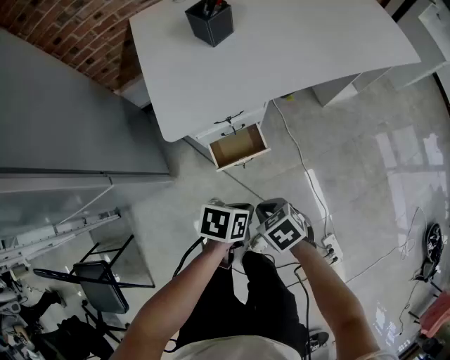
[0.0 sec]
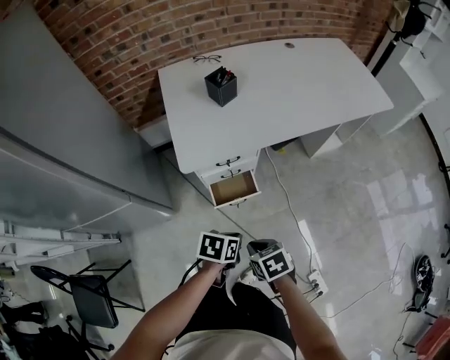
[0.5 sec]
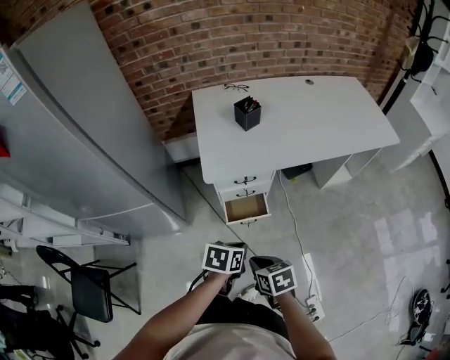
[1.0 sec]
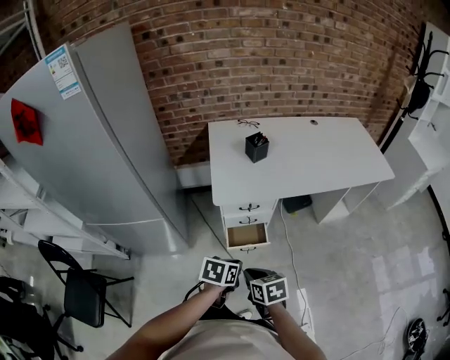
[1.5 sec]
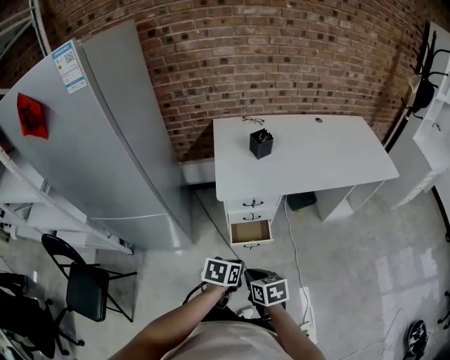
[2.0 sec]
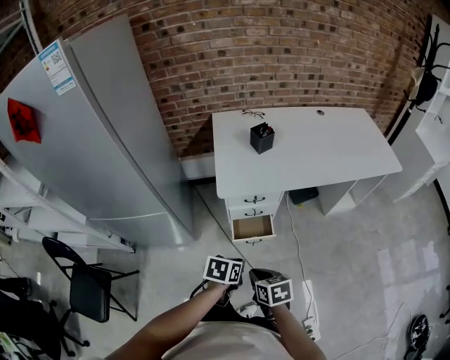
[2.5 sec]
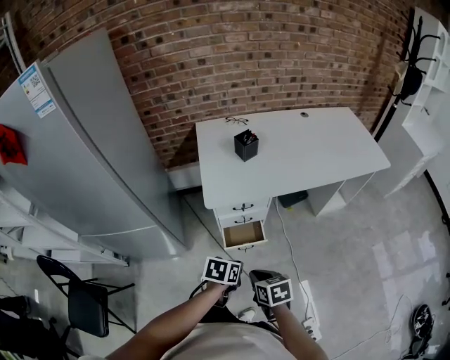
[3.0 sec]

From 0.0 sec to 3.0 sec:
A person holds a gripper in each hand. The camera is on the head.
From 0.0 sec to 1.5 sec: Both grippers travel together upward, some 20 cm. The left gripper turns by roughly 20 degrees. Meanwhile the right gripper rotates some 20 degrees.
From 1.5 sec to 3.0 sec: The grippers stay close to where they were, moving slightly.

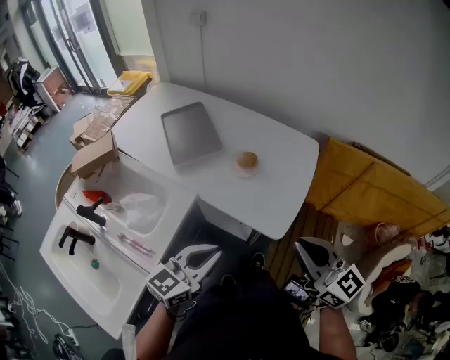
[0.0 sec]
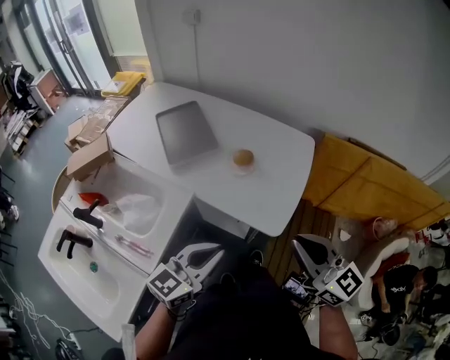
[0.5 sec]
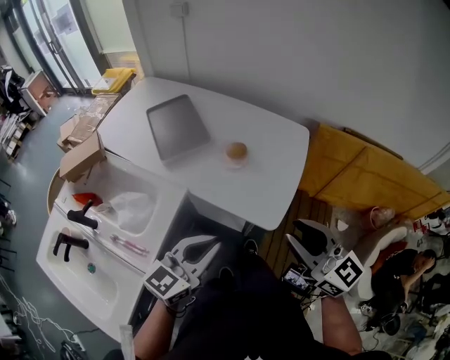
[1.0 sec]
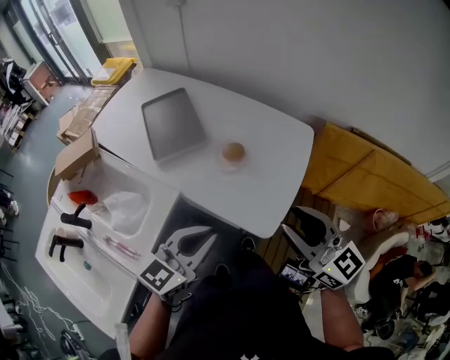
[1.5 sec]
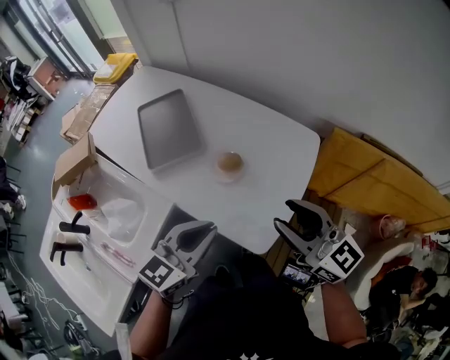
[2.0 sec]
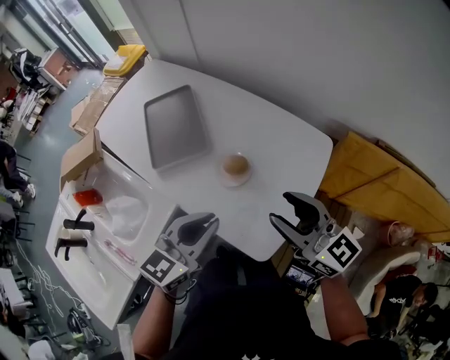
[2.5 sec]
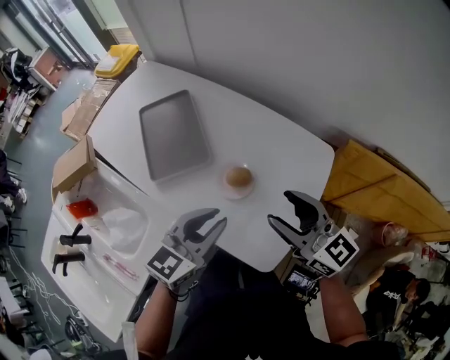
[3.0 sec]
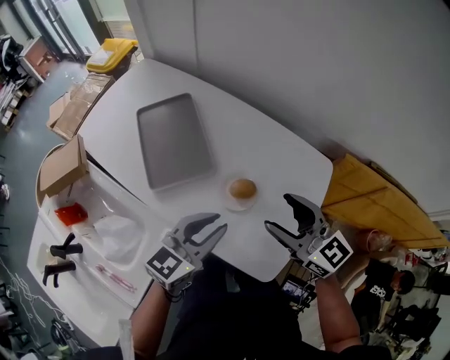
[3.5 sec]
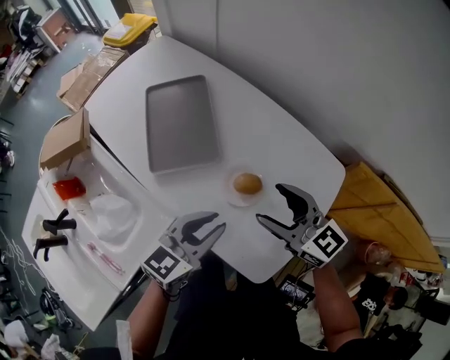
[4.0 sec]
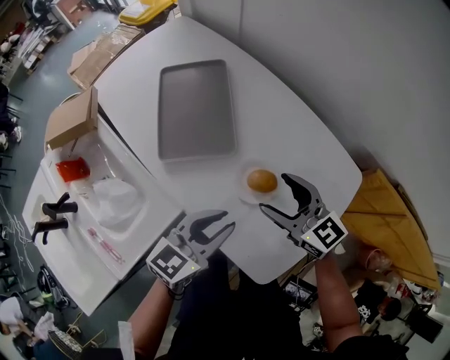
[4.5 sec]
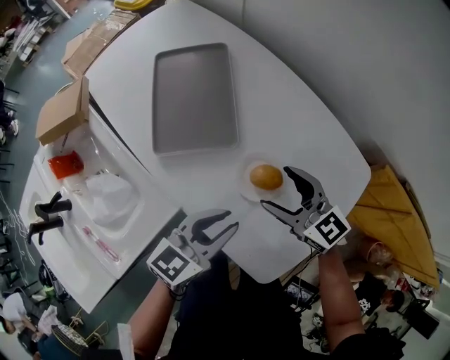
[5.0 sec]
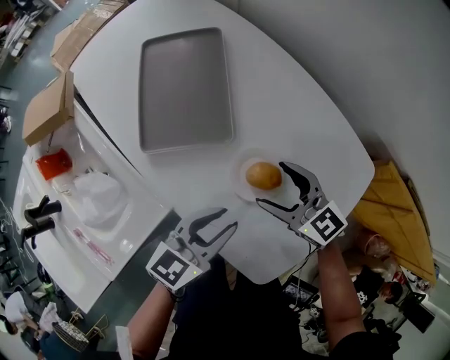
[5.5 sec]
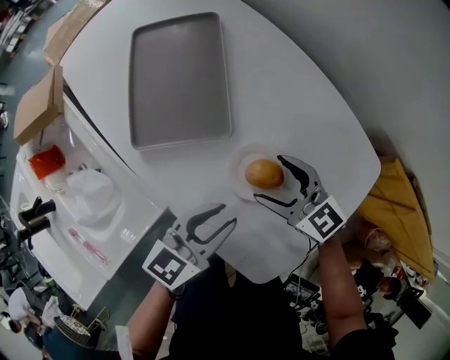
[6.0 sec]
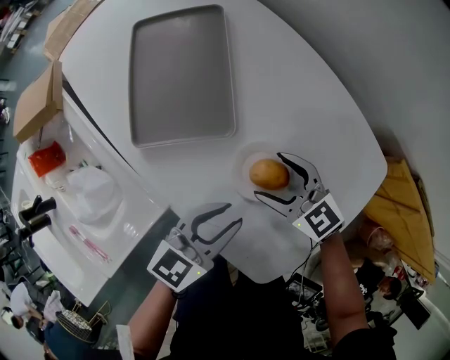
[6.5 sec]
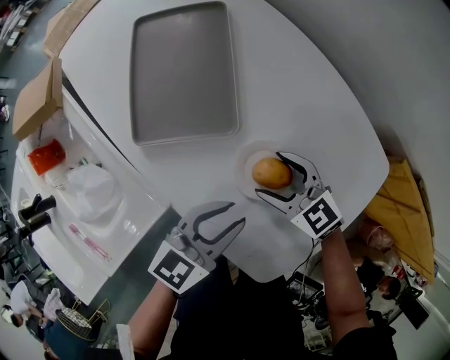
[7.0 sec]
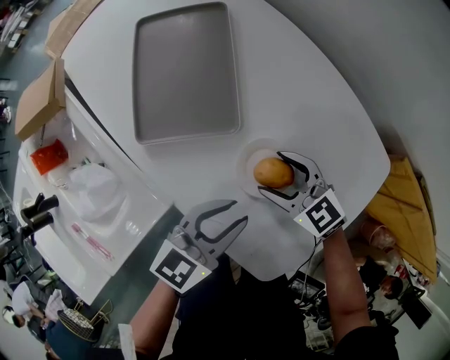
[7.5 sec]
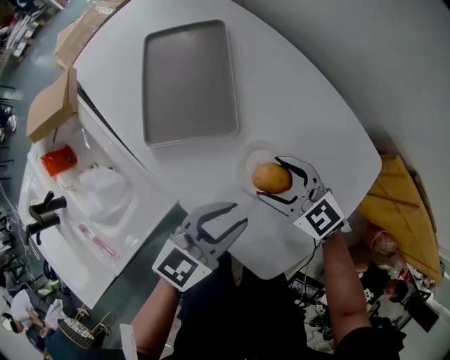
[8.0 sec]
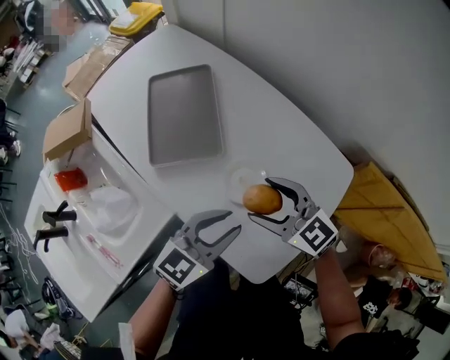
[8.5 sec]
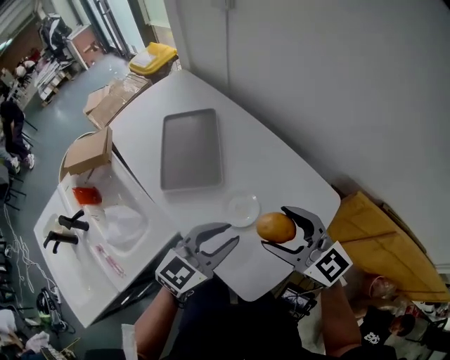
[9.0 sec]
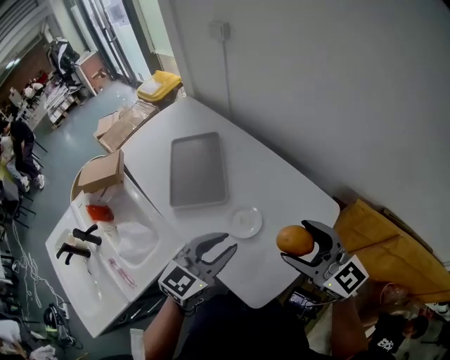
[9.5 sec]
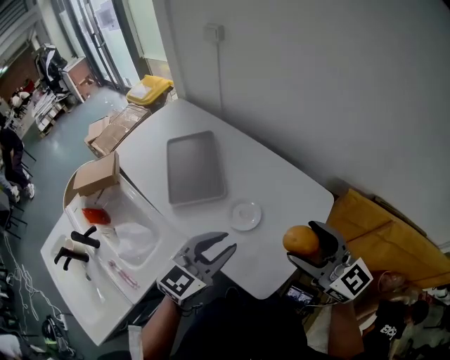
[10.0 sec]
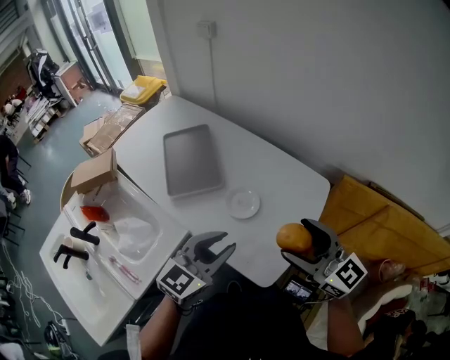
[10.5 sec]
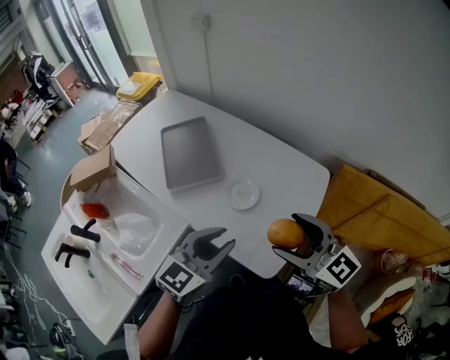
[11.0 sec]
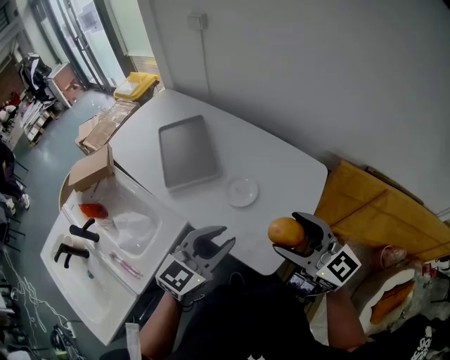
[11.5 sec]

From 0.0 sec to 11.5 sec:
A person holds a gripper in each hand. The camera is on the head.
From 0.0 sec to 2.0 sec: The right gripper moves forward, about 20 cm, and opens its fingers. The left gripper goes some 20 cm forward and to the right.
From 2.0 sec to 4.0 sec: The left gripper is displaced forward and downward by approximately 15 cm, while the right gripper goes about 25 cm forward, downward and to the left, and opens its fingers.
From 4.0 sec to 6.0 sec: The two grippers go roughly 15 cm downward.
From 6.0 sec to 7.5 sec: There are only small adjustments of the grippers.
From 7.5 sec to 9.5 sec: The left gripper is displaced upward by about 20 cm. Meanwhile the right gripper is displaced upward and backward by some 40 cm, and swivels some 30 degrees.
From 9.5 sec to 11.5 sec: Both grippers move backward, about 10 cm.

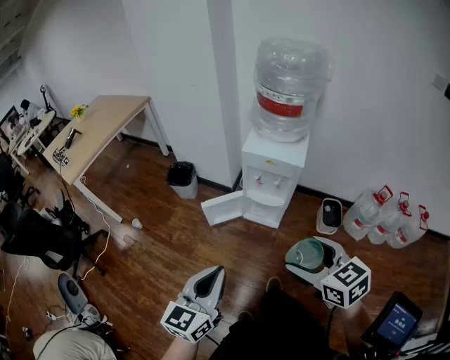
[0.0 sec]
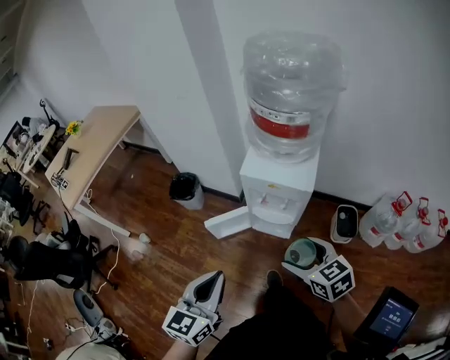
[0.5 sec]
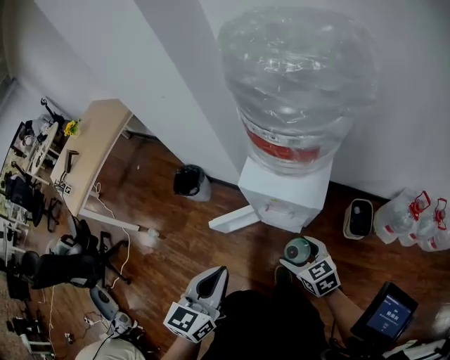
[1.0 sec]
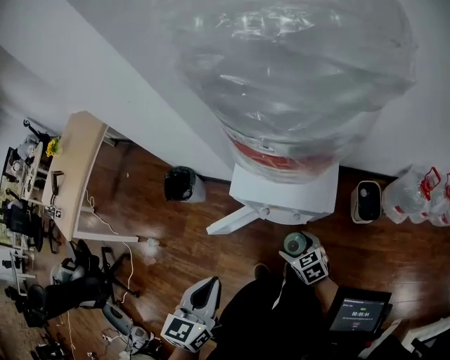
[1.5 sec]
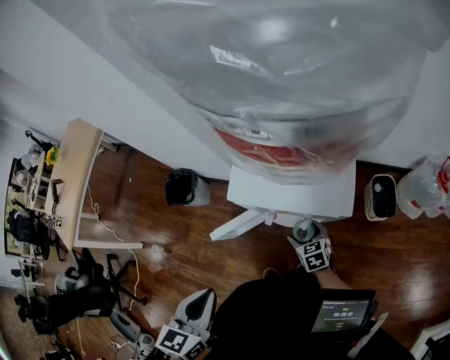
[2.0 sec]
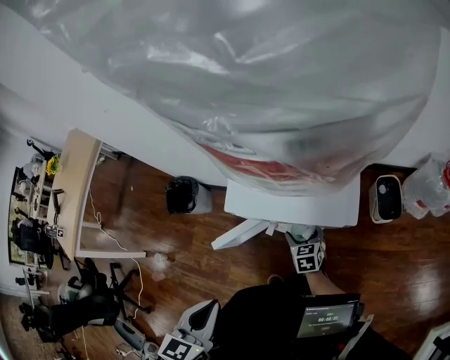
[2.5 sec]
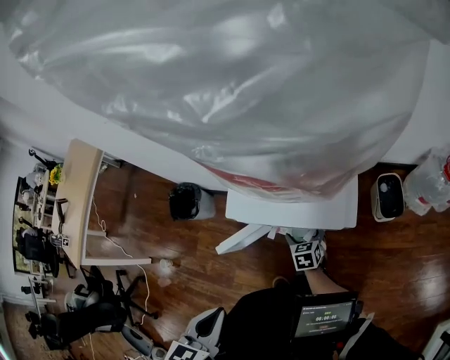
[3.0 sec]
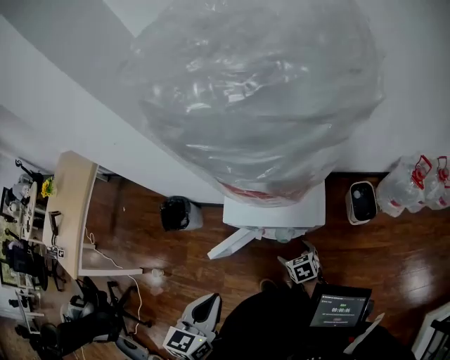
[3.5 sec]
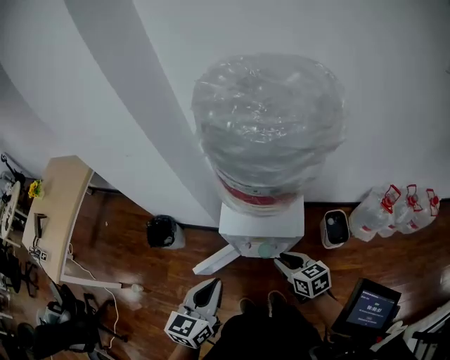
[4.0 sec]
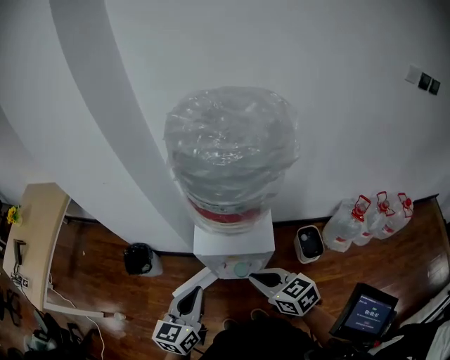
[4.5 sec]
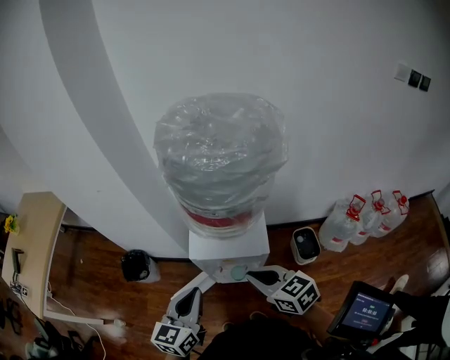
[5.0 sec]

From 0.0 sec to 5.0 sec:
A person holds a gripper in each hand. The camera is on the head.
From 0.0 sec to 2.5 sec: The left gripper goes approximately 40 cm forward and downward, and changes its angle by roughly 30 degrees, while the right gripper goes some 70 cm downward and forward, and rotates about 30 degrees.
From 2.5 sec to 5.0 sec: The right gripper heads upward, covering about 50 cm, swivels approximately 20 degrees, and closes. The left gripper goes about 15 cm upward, and rotates approximately 20 degrees.

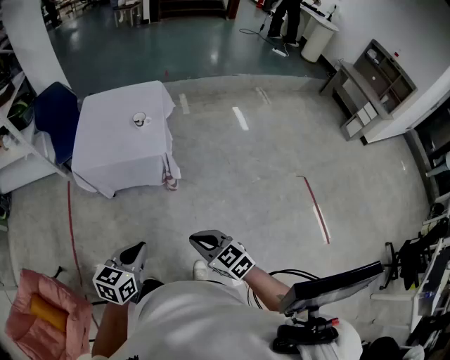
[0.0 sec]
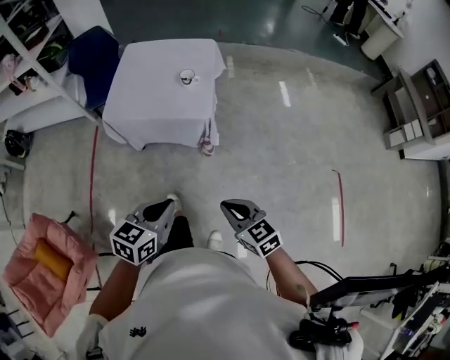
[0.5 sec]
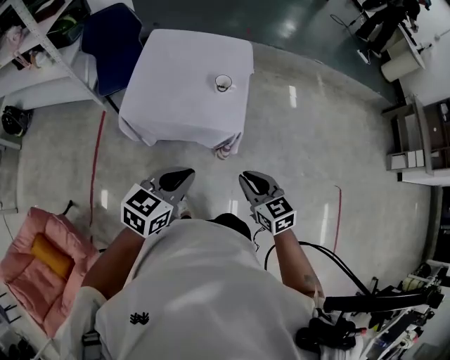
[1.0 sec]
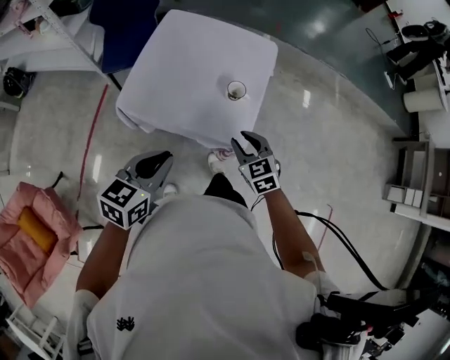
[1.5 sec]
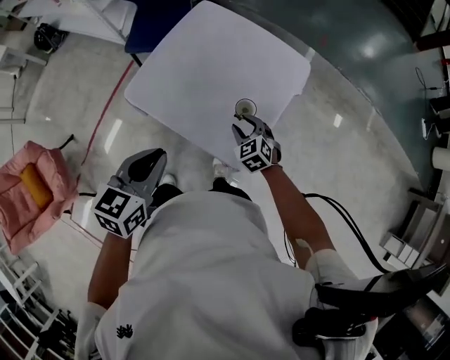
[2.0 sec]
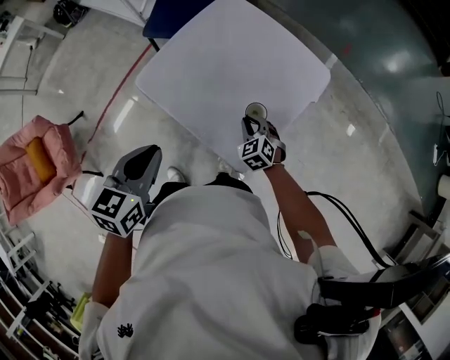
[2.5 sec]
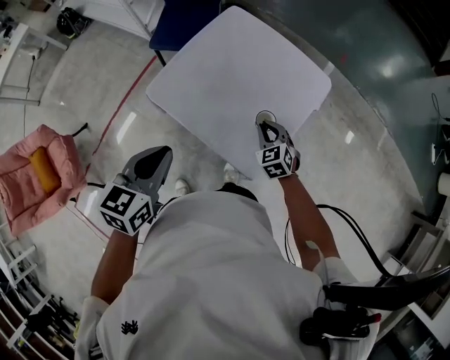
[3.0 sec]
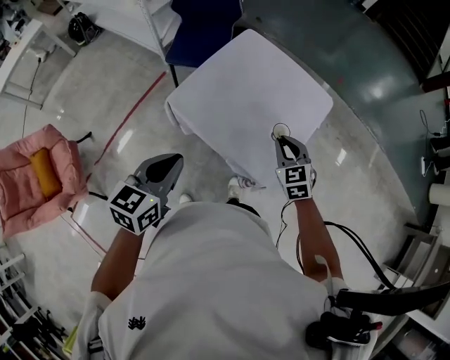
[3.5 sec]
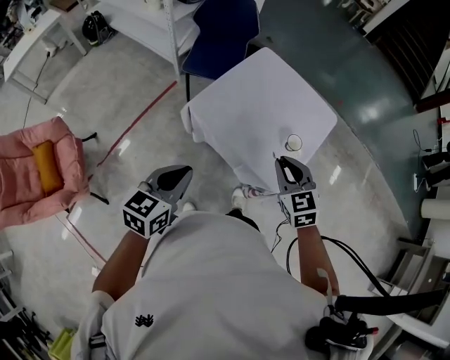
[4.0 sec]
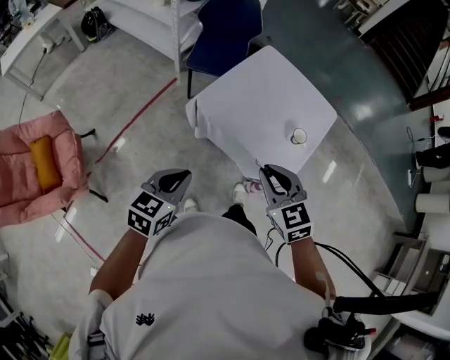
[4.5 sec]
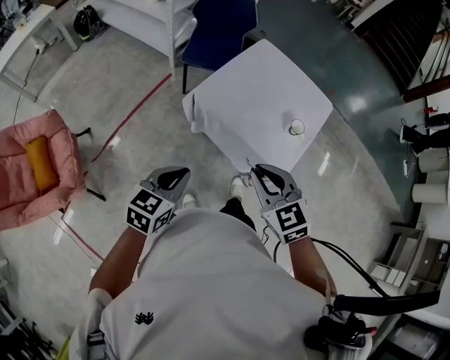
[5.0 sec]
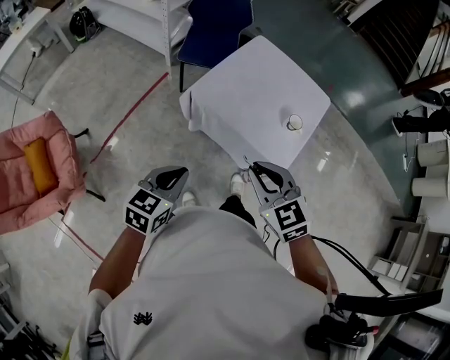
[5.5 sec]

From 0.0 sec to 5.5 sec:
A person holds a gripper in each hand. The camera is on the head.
From 0.0 sec to 2.0 sec: The pair of grippers is taken about 60 cm. The right gripper changes its angle by roughly 40 degrees, and opens up. Meanwhile the left gripper swivels about 30 degrees.
From 2.0 sec to 3.5 sec: The right gripper heads upward and to the left, covering some 15 cm, and closes its fingers; the left gripper moves to the left, some 15 cm.
From 3.5 sec to 5.5 sec: The left gripper goes about 20 cm backward and to the left. The right gripper shifts approximately 35 cm backward, to the left and upward.

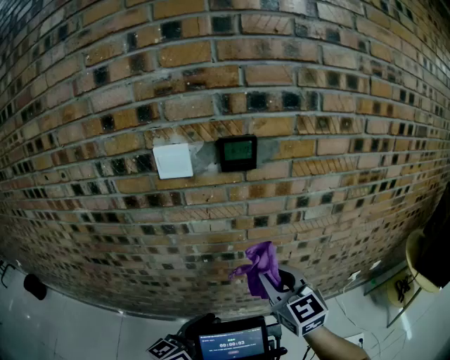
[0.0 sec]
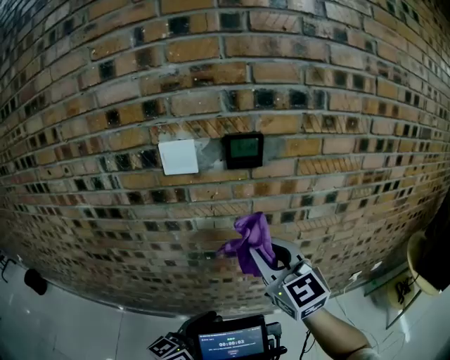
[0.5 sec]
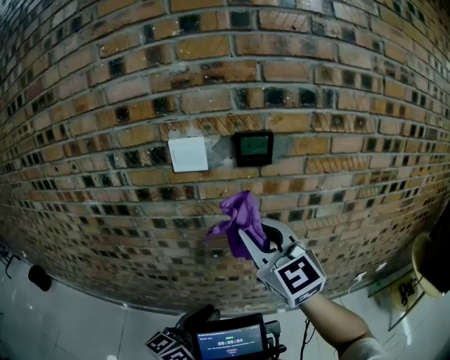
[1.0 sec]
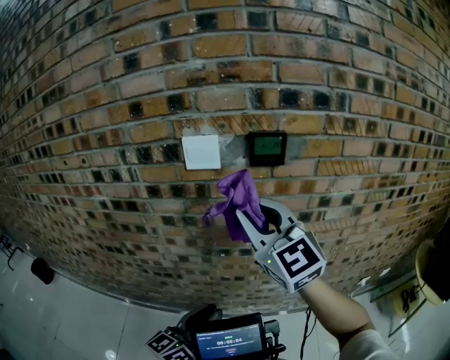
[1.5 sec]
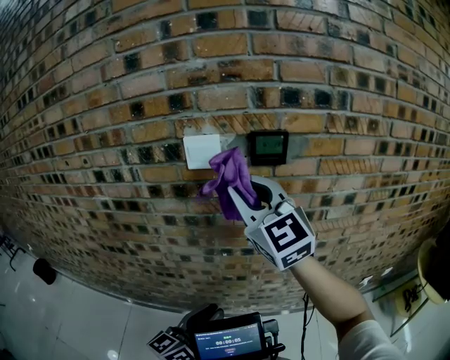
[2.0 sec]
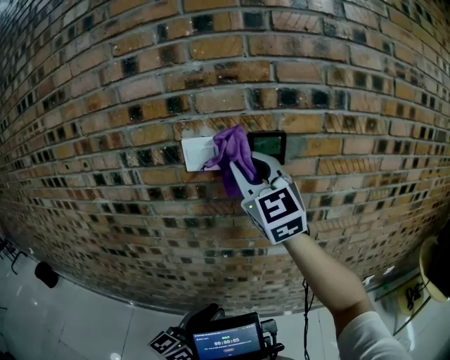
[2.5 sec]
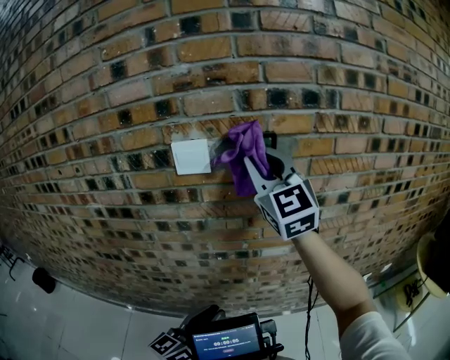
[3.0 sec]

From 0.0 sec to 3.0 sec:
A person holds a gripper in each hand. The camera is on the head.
From 0.0 sec to 1.5 sec: The right gripper moves upward and to the left, approximately 20 cm, and changes its angle by some 20 degrees.
From 1.5 sec to 3.0 sec: The right gripper shifts roughly 10 cm forward and upward.
